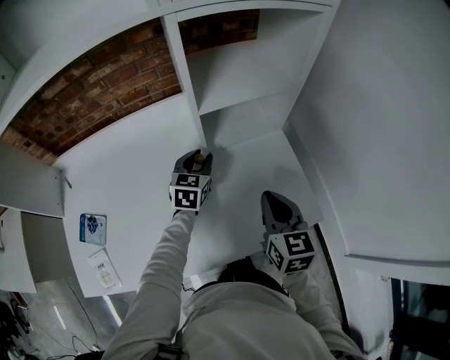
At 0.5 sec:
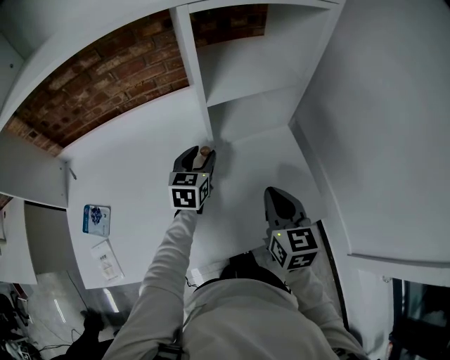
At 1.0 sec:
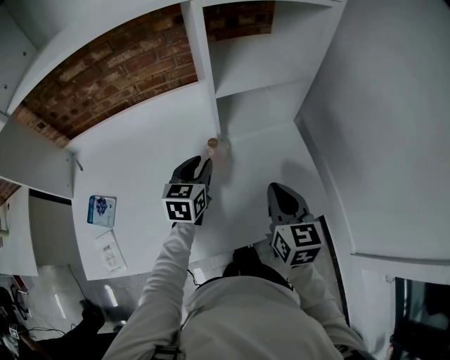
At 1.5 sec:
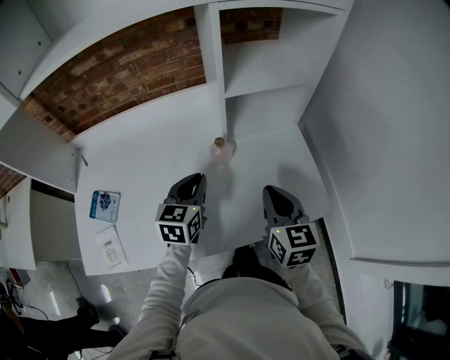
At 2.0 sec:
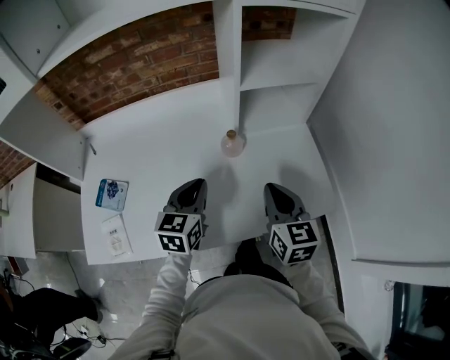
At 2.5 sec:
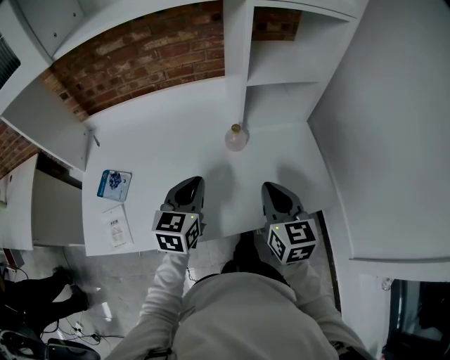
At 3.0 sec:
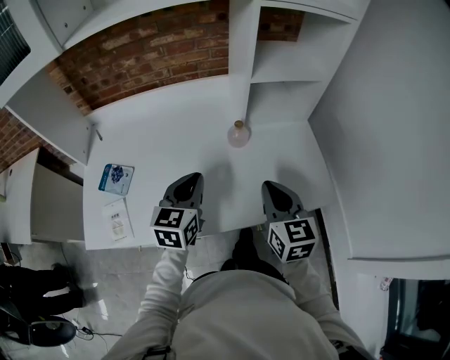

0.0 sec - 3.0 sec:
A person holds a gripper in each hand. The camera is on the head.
0.0 sec - 1.5 sec: The right gripper moves roughly 5 cm; the left gripper is displaced backward and to the left by some 15 cm, and closes its fingers.
1.5 sec - 3.0 sec: Both grippers travel together backward and to the left, approximately 10 cm.

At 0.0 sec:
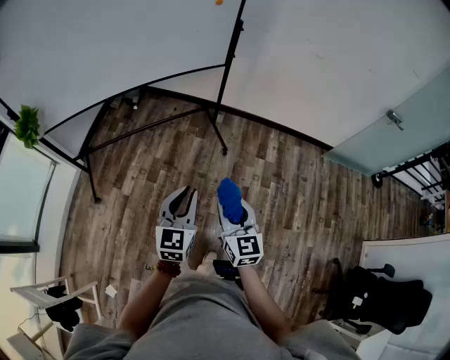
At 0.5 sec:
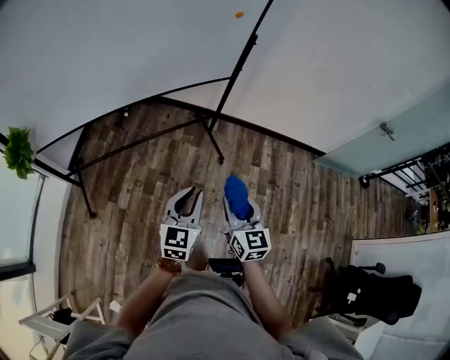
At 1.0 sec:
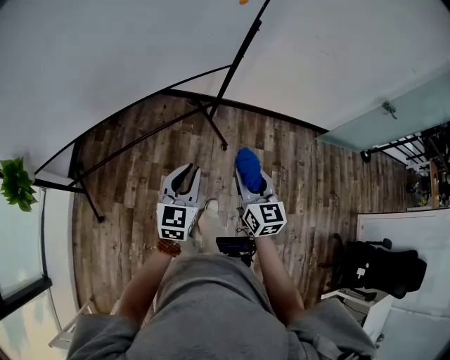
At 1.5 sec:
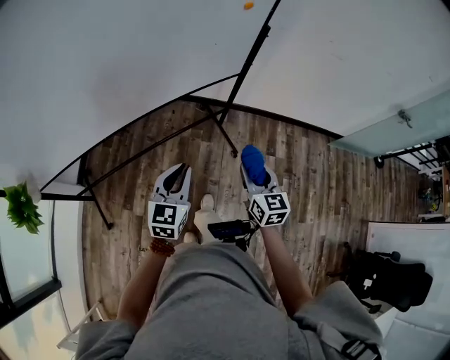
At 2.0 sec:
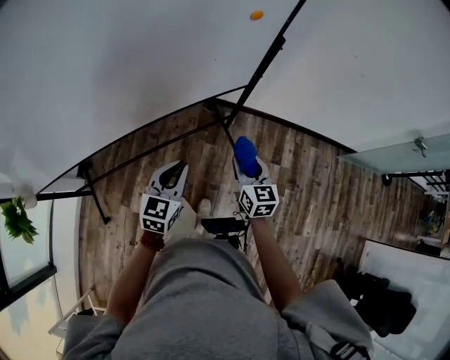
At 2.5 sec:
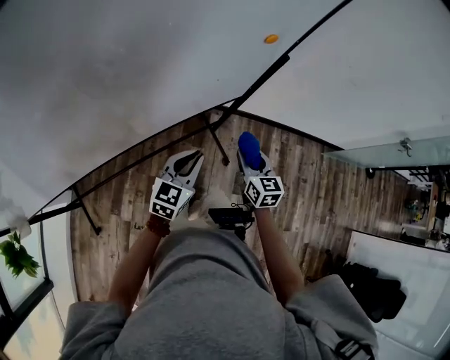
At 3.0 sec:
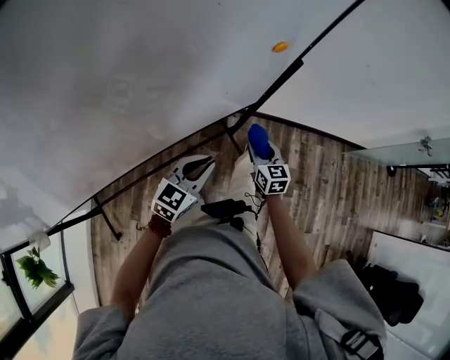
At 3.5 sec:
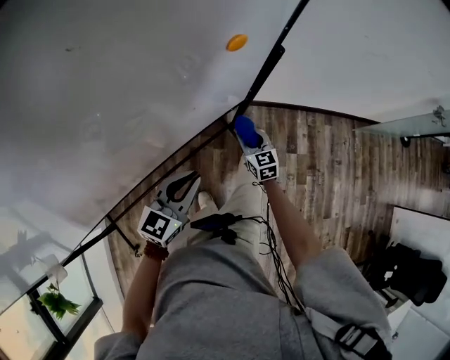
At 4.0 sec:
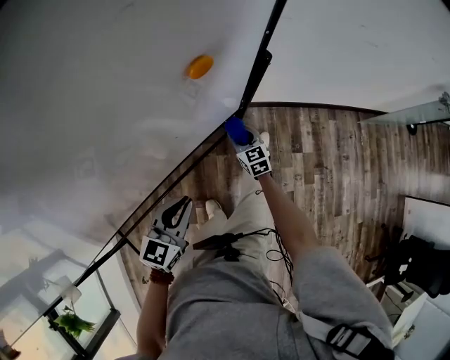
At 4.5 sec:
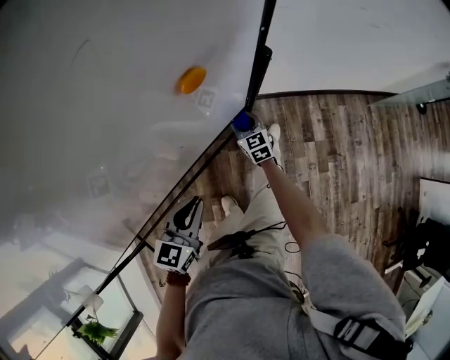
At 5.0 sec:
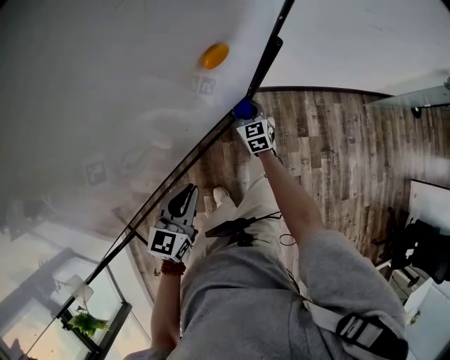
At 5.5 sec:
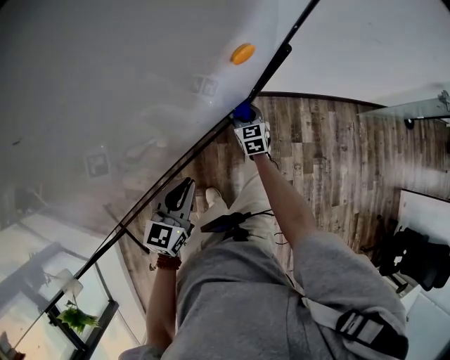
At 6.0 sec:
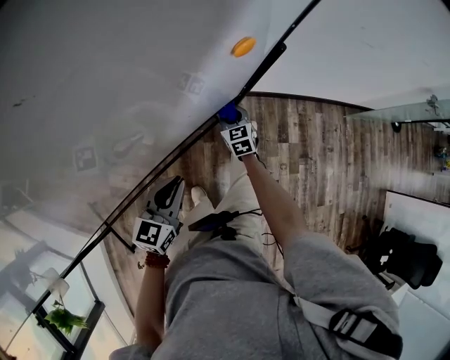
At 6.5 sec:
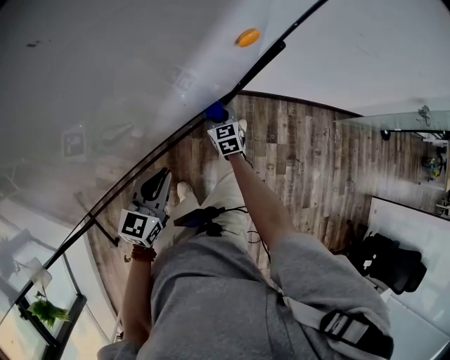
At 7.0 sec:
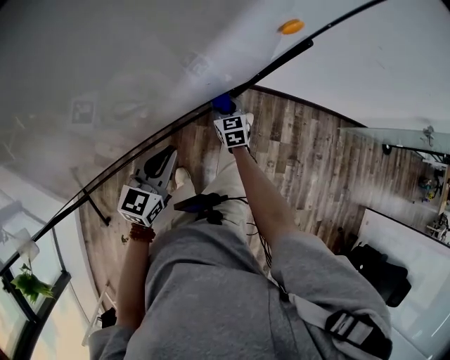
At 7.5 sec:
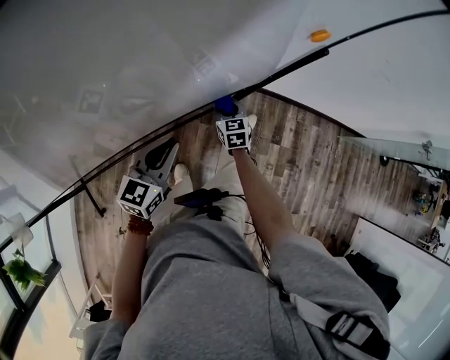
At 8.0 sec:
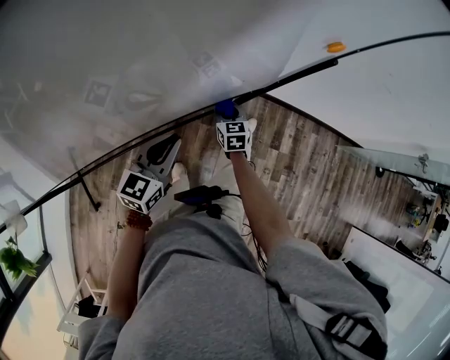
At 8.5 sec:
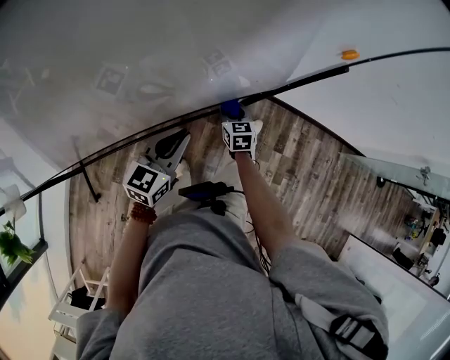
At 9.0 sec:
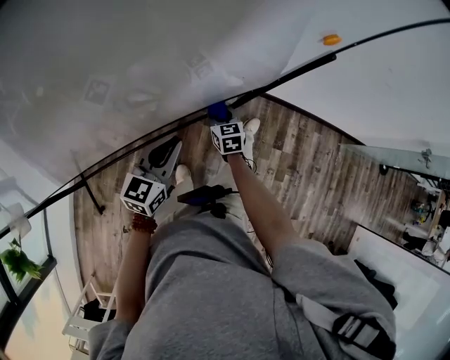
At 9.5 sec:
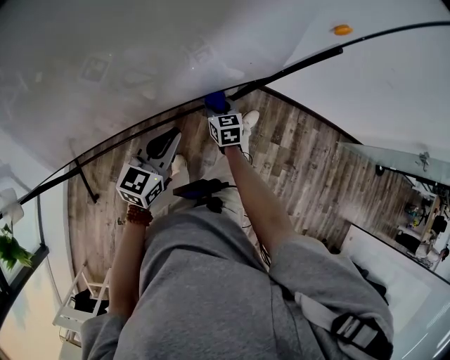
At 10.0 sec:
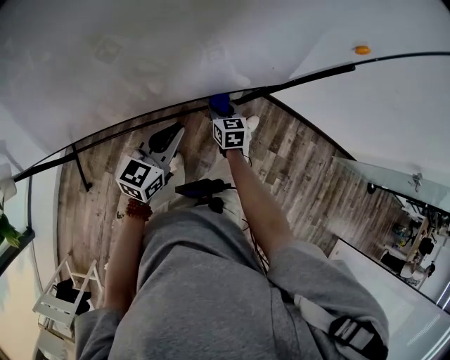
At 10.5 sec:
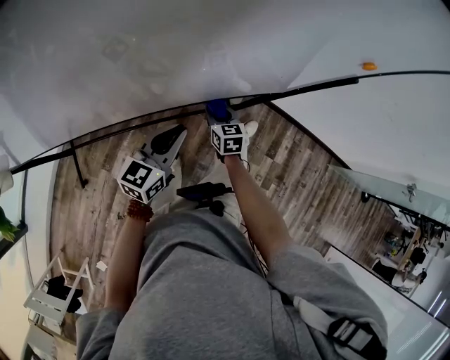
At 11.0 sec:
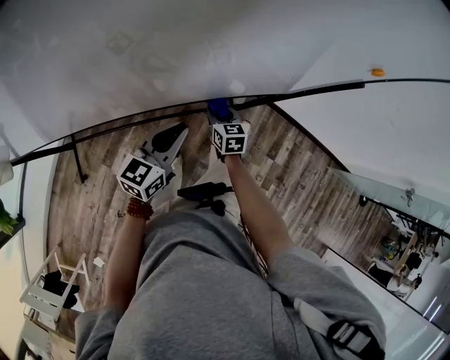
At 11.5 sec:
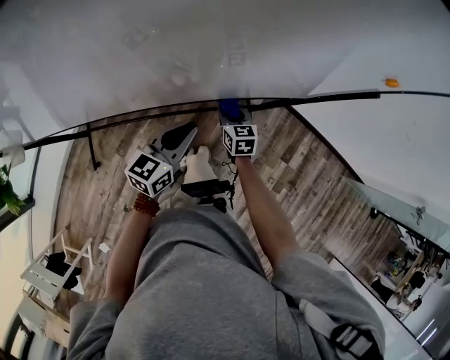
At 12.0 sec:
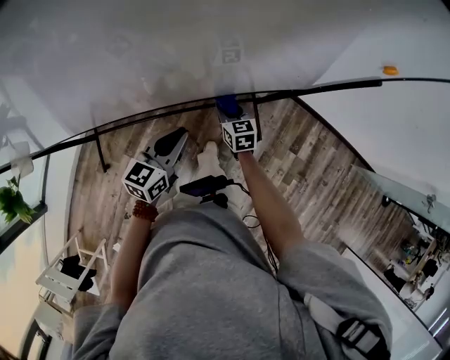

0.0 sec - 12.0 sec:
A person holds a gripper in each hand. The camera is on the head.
0.0 sec - 2.0 sec: The two grippers travel together, forward, approximately 50 cm.
2.0 sec - 4.0 sec: The right gripper is displaced forward and downward by roughly 35 cm. The left gripper travels forward by about 15 cm.
4.0 sec - 6.0 sec: There are only small adjustments of the grippers.
6.0 sec - 8.0 sec: The right gripper travels to the left and backward by some 10 cm; the left gripper is displaced to the left by approximately 5 cm.
8.0 sec - 10.0 sec: The right gripper is displaced to the left and backward by approximately 10 cm.
10.0 sec - 12.0 sec: The right gripper shifts roughly 5 cm to the left. The left gripper moves approximately 5 cm.

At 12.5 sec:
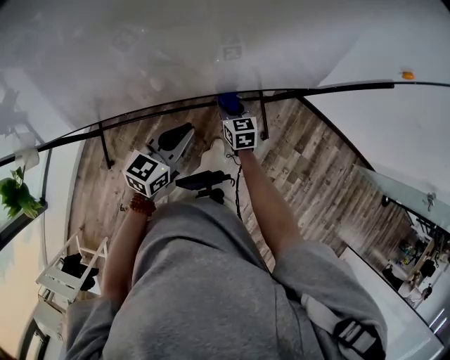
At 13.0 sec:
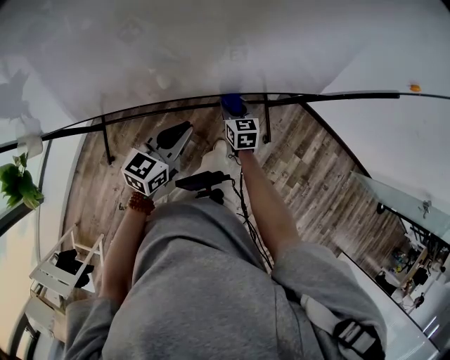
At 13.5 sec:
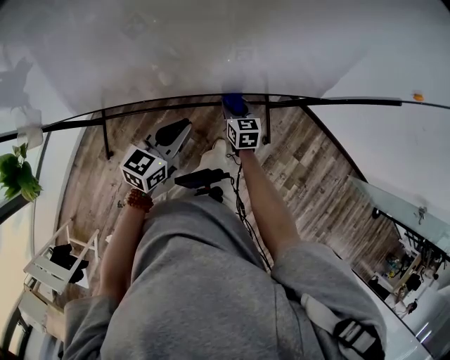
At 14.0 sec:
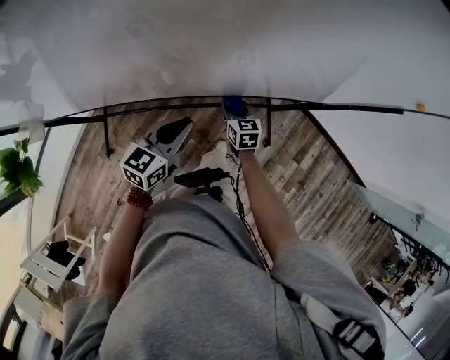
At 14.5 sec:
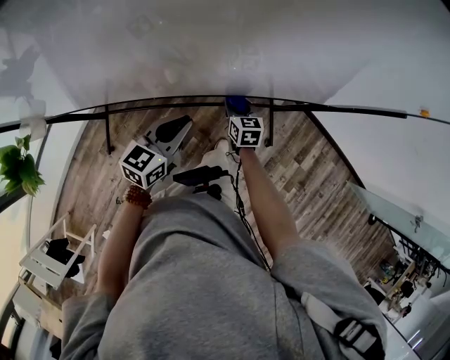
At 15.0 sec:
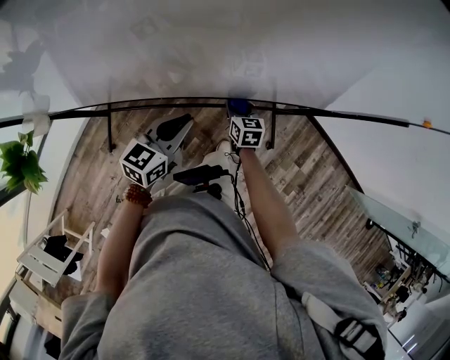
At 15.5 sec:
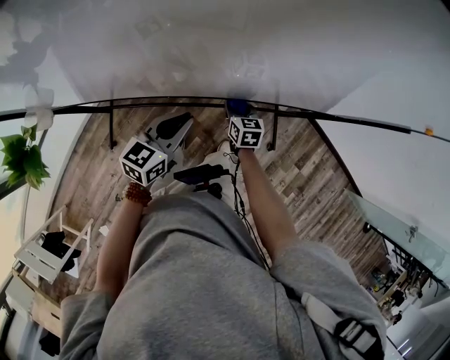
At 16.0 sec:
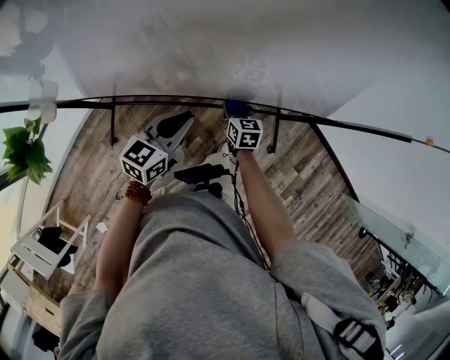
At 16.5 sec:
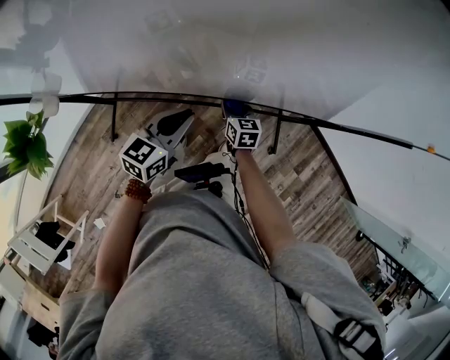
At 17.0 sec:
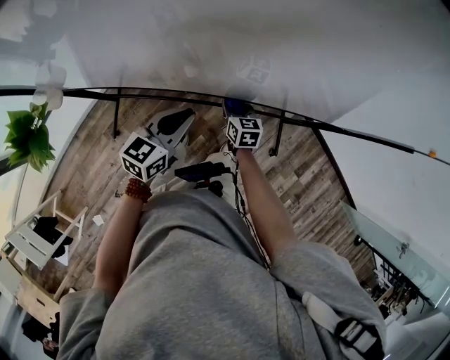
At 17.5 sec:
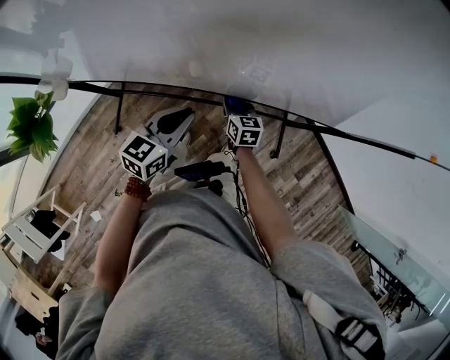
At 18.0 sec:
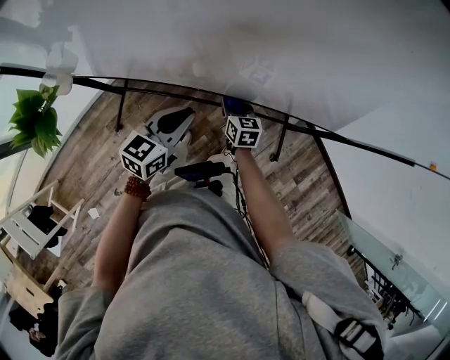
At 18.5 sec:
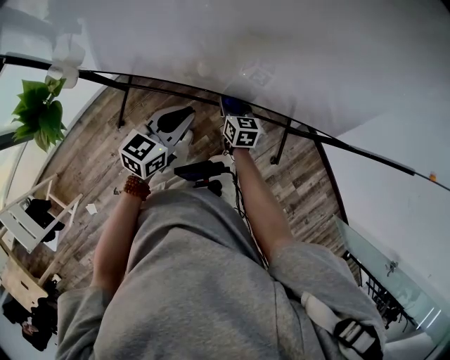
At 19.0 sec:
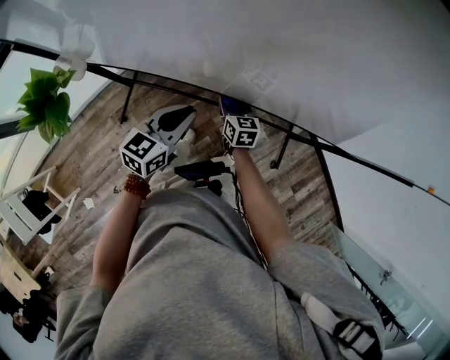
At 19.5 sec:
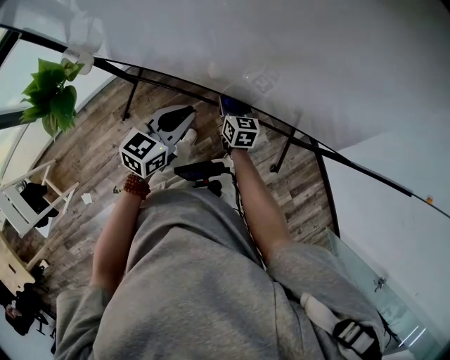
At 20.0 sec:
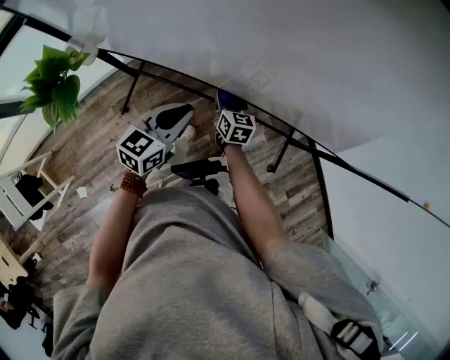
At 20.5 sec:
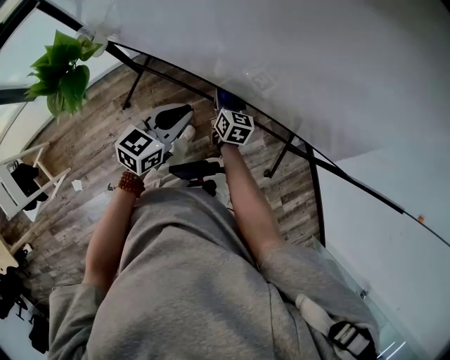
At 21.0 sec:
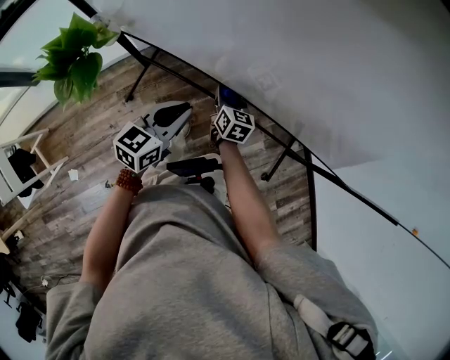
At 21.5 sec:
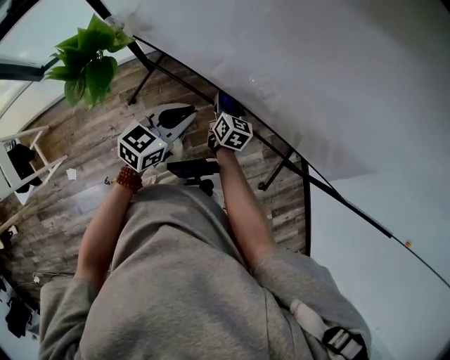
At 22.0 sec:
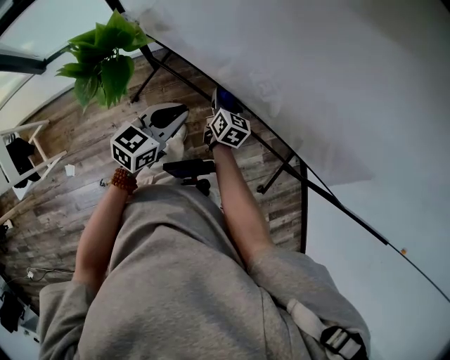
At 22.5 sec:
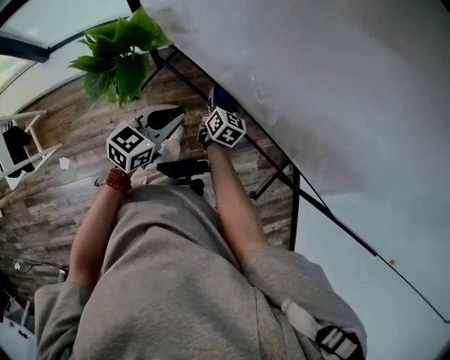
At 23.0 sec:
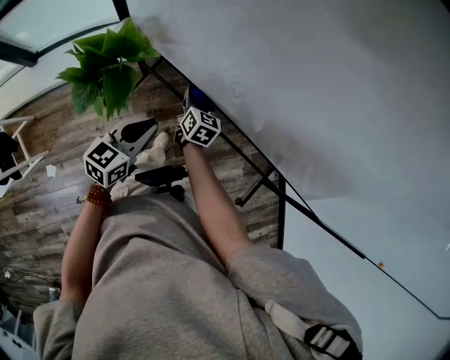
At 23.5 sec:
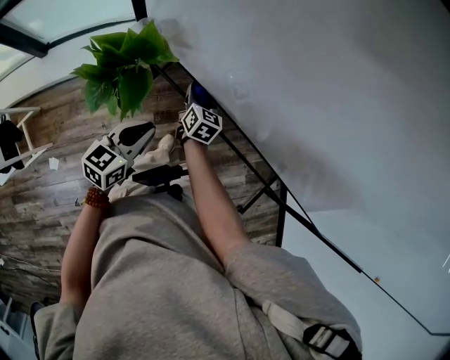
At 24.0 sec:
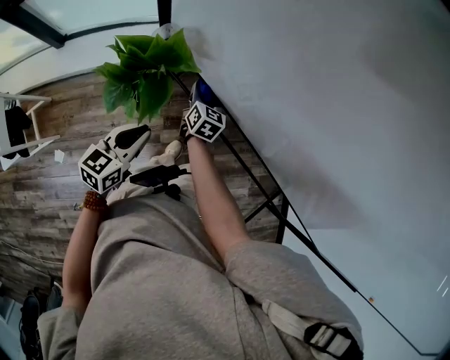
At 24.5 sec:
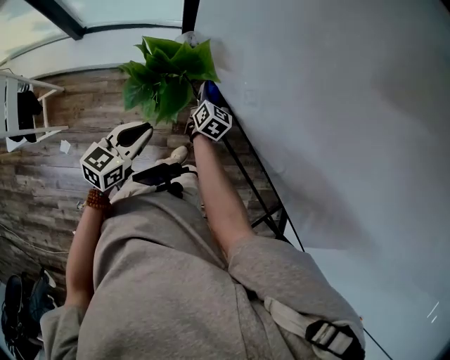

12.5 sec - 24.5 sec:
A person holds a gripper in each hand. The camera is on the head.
12.5 sec - 14.5 sec: The grippers both shift to the left by about 10 cm.
14.5 sec - 16.5 sec: Both grippers travel together to the left, roughly 10 cm.
16.5 sec - 18.5 sec: Both grippers move to the left, roughly 5 cm.
18.5 sec - 20.5 sec: The grippers both shift to the left by roughly 10 cm.
20.5 sec - 22.5 sec: The grippers both shift to the left by approximately 15 cm.
22.5 sec - 24.5 sec: Both grippers move to the left, about 15 cm. The left gripper rotates approximately 20 degrees.
